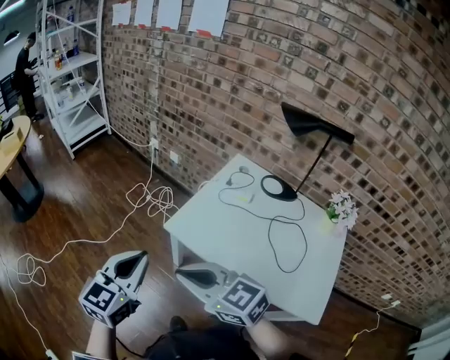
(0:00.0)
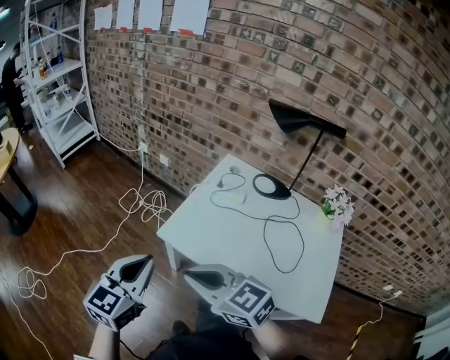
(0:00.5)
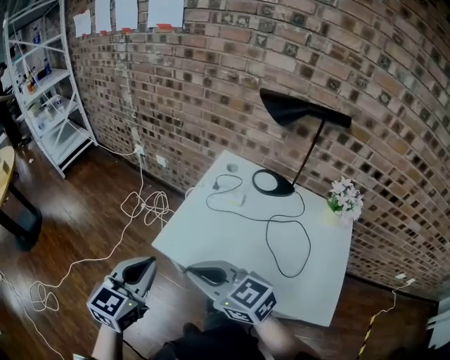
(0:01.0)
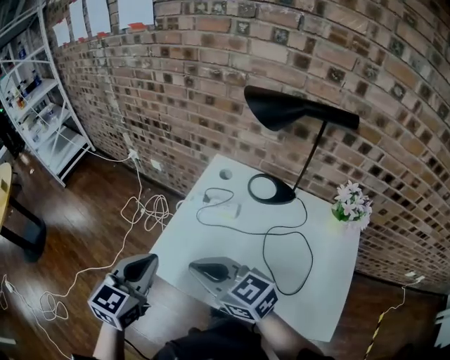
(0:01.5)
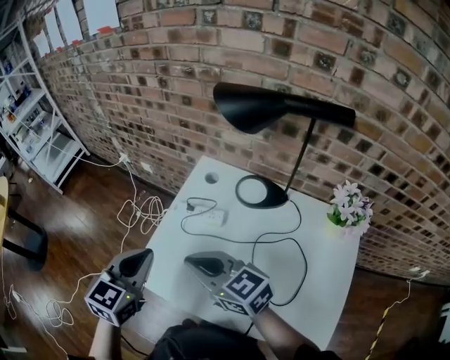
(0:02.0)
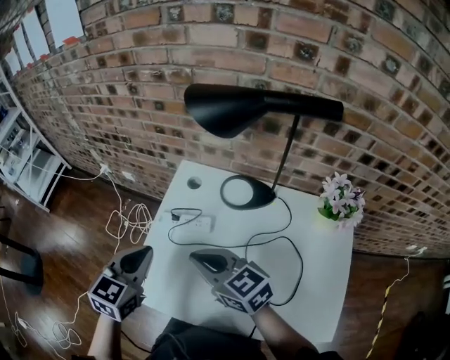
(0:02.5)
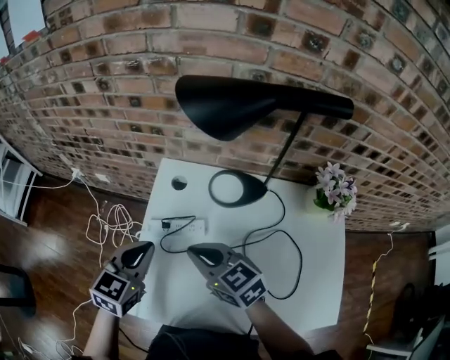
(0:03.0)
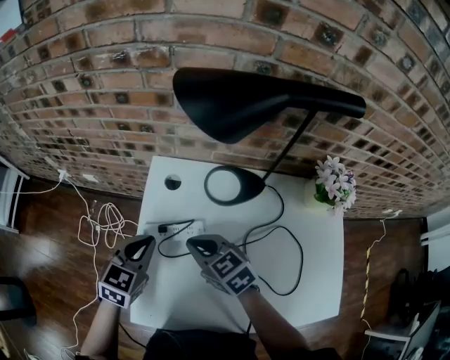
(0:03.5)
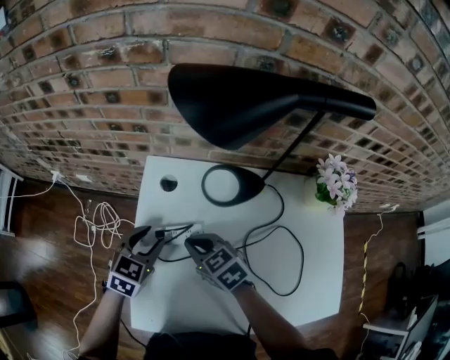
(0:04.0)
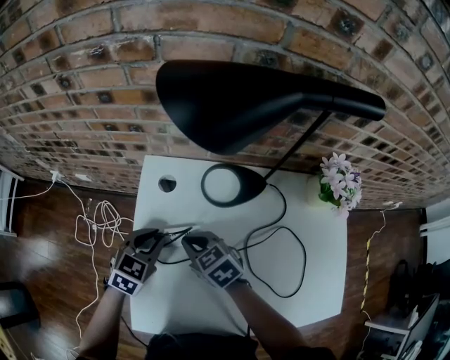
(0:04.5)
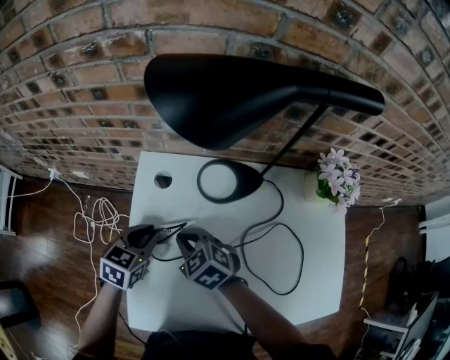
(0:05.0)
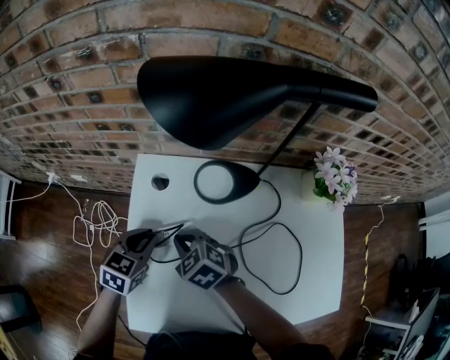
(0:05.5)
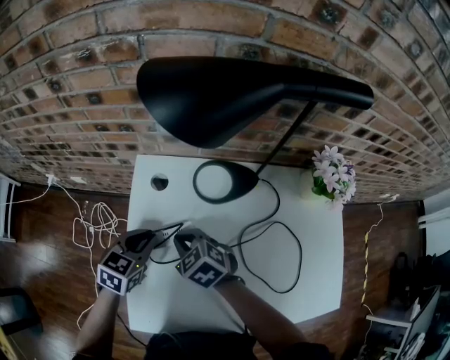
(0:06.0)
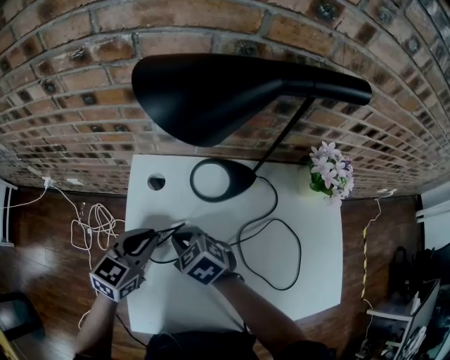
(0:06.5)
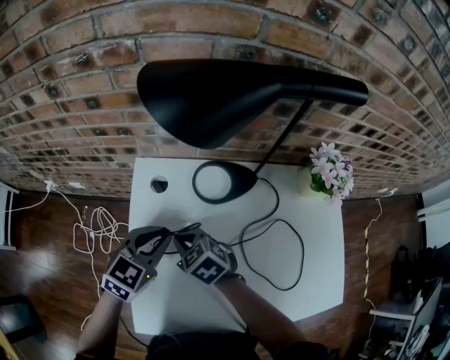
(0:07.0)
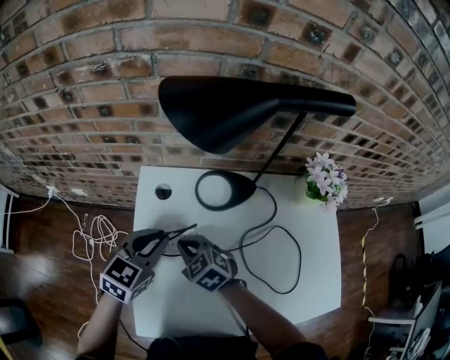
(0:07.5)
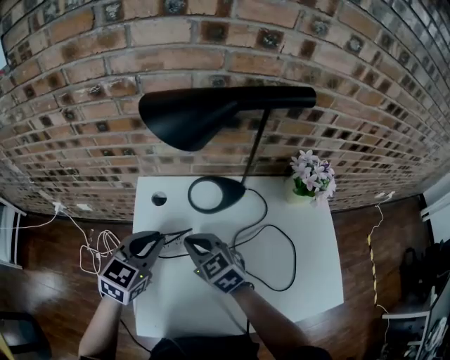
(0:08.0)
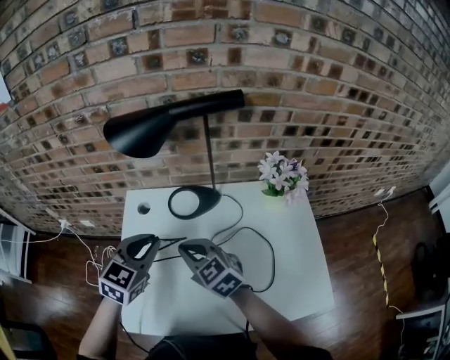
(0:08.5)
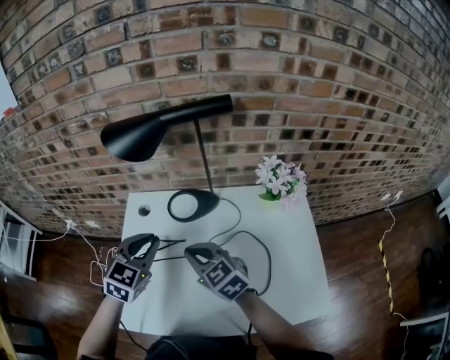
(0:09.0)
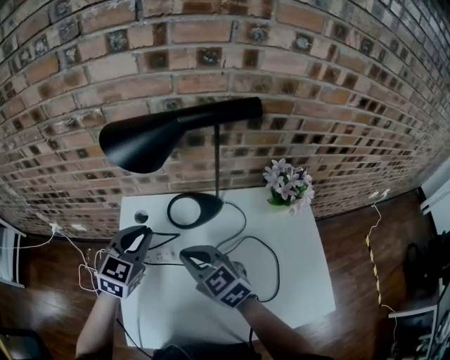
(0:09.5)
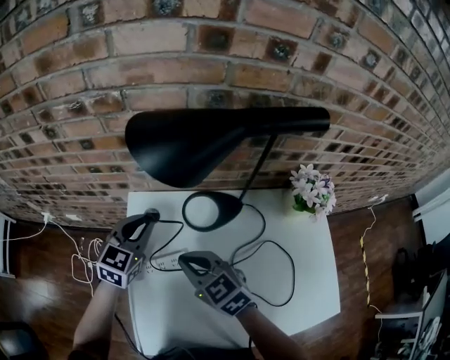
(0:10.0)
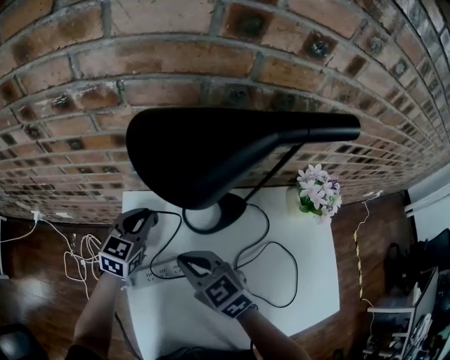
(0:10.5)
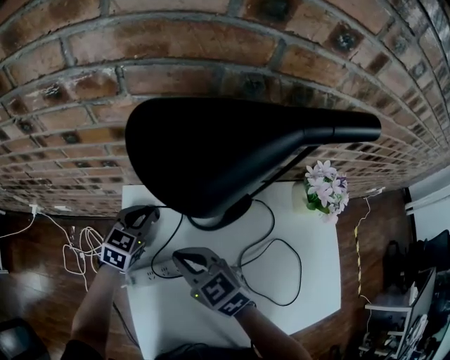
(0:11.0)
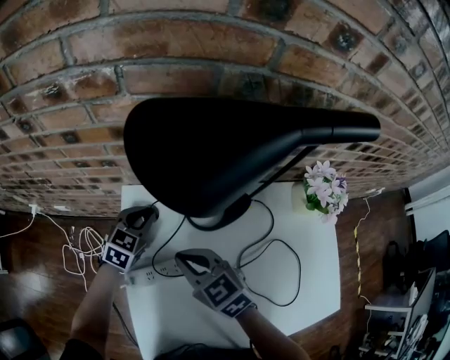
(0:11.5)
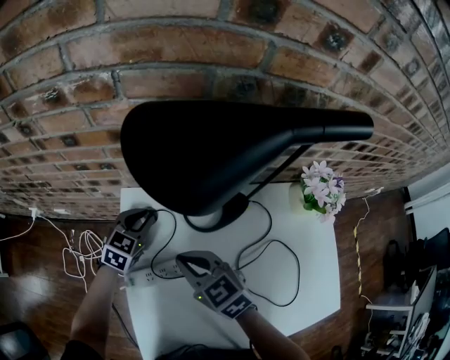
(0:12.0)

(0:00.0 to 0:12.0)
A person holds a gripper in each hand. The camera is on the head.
0:00.0 - 0:02.0: Both grippers travel together to the right and forward, about 30 cm.
0:02.0 - 0:04.0: The right gripper travels downward by some 15 cm, and swivels some 40 degrees. The left gripper ends up about 25 cm from where it was, swivels some 30 degrees, and opens.
0:04.0 - 0:06.0: The left gripper closes up.
0:06.0 - 0:08.0: The two grippers go roughly 10 cm upward.
0:08.0 - 0:10.0: The right gripper travels to the right and back again, roughly 10 cm each way, while the left gripper shifts approximately 10 cm forward.
0:10.0 - 0:12.0: The left gripper is displaced downward by approximately 10 cm.

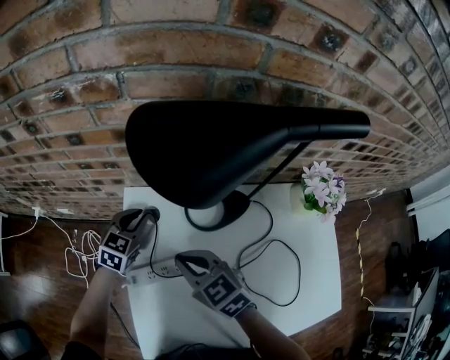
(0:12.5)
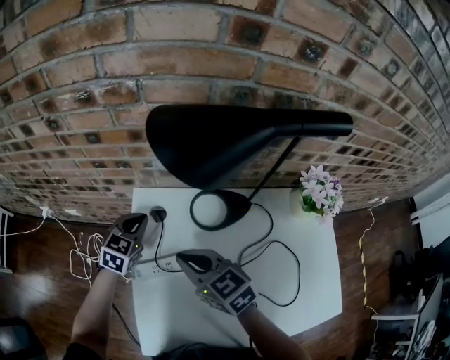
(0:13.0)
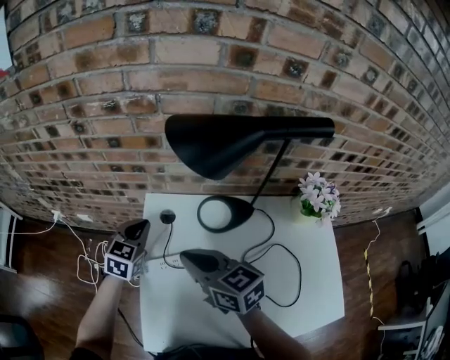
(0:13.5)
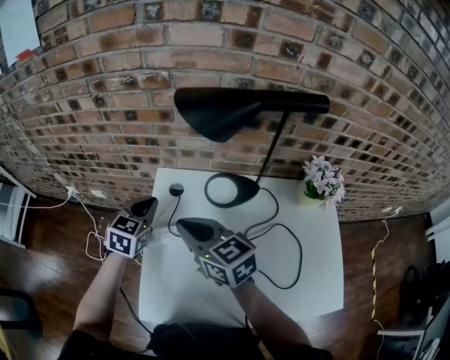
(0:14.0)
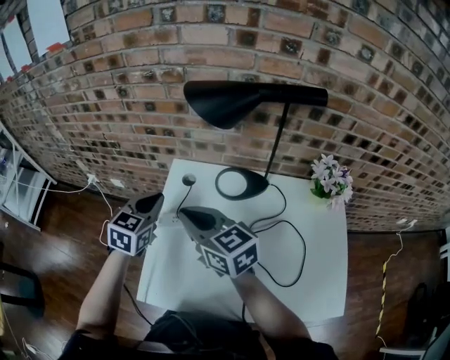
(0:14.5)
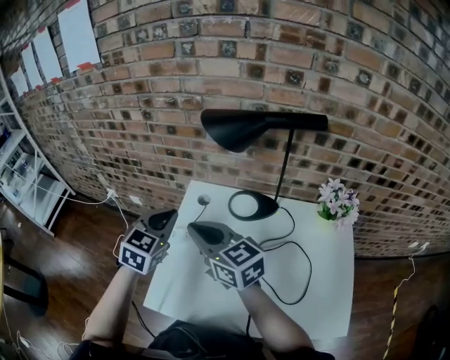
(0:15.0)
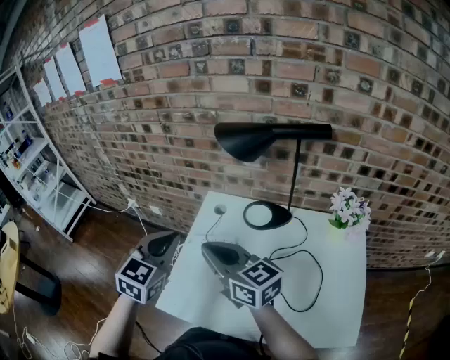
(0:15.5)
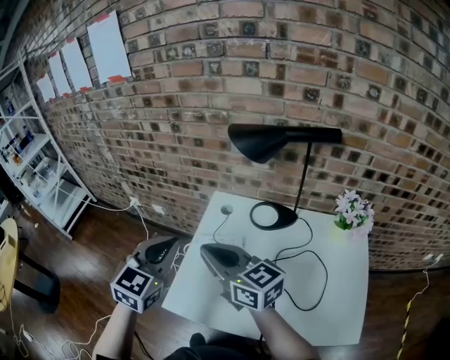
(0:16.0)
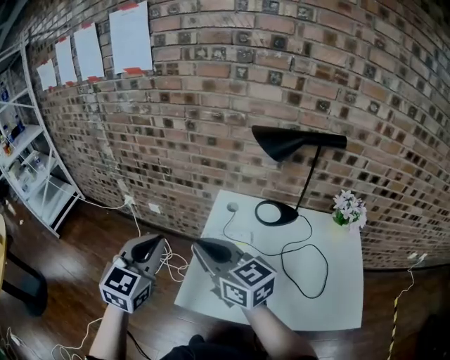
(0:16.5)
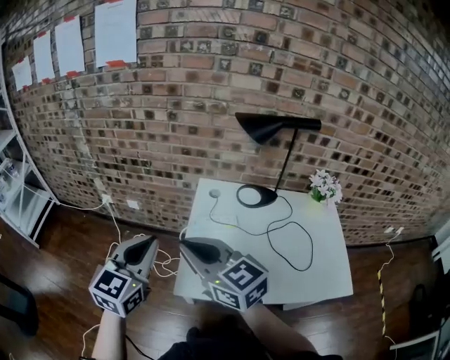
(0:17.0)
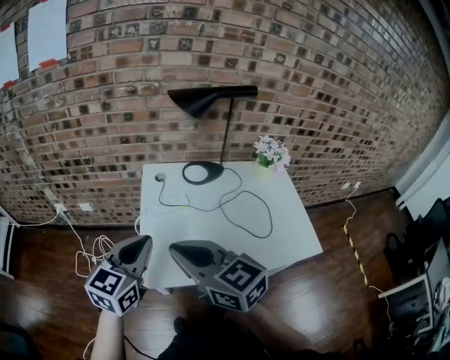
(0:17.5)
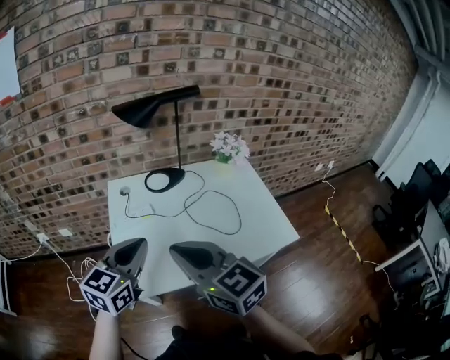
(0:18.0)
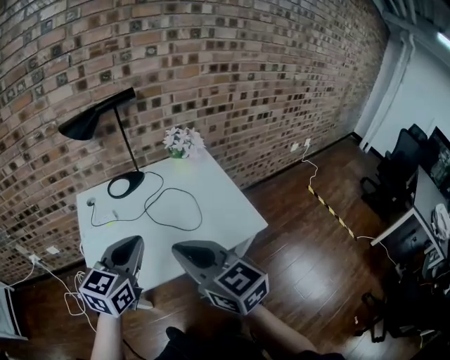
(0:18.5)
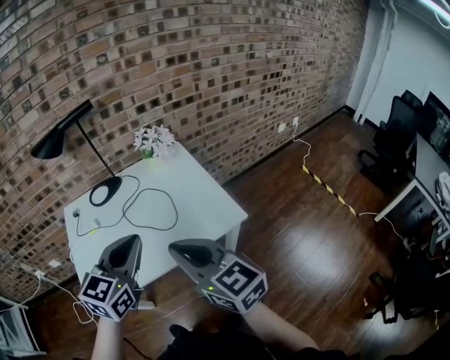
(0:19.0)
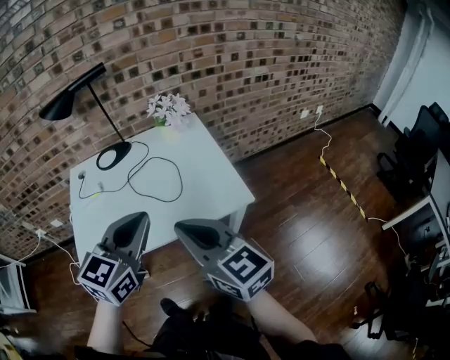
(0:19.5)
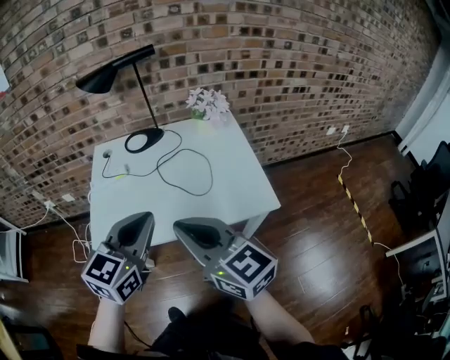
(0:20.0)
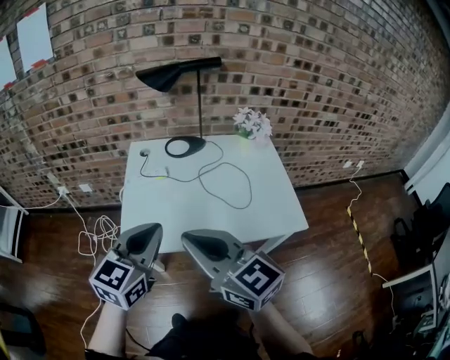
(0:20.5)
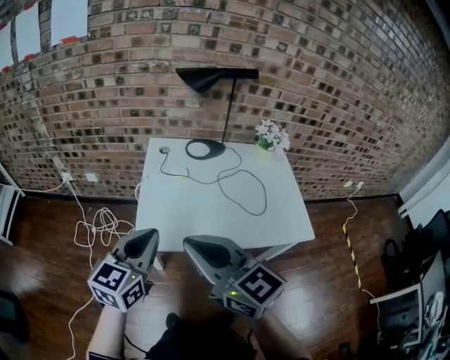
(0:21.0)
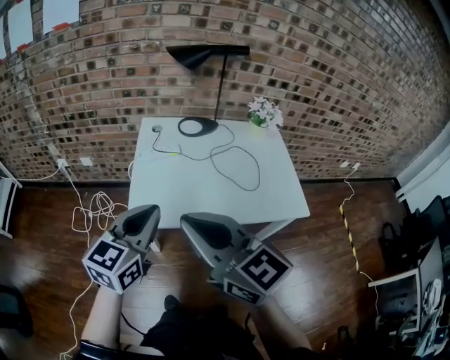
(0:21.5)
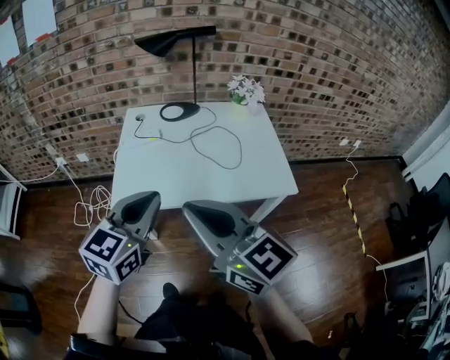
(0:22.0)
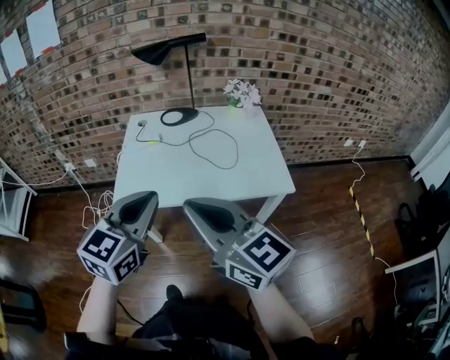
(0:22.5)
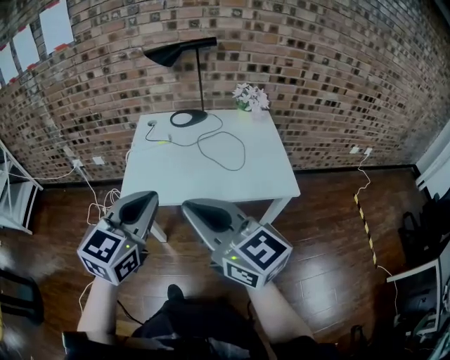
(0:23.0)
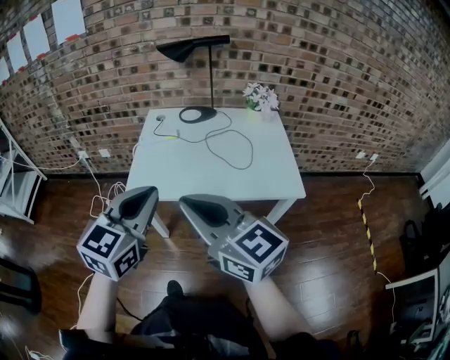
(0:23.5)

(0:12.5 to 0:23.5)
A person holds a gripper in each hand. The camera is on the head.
0:12.5 - 0:14.5: Both grippers move upward and backward, about 20 cm. The right gripper turns by roughly 20 degrees.
0:14.5 - 0:16.0: The left gripper travels backward and upward by some 20 cm. The right gripper goes some 10 cm backward and upward.
0:16.0 - 0:18.0: The right gripper changes place by approximately 20 cm, and changes its angle by some 40 degrees; the left gripper ends up some 15 cm from where it was, and changes its angle by approximately 40 degrees.
0:18.0 - 0:20.0: Both grippers move to the right, about 20 cm.
0:20.0 - 0:21.5: The grippers both shift to the left by approximately 20 cm.
0:21.5 - 0:23.5: The left gripper shifts about 15 cm backward and to the right, while the right gripper is displaced to the right and backward by roughly 15 cm.

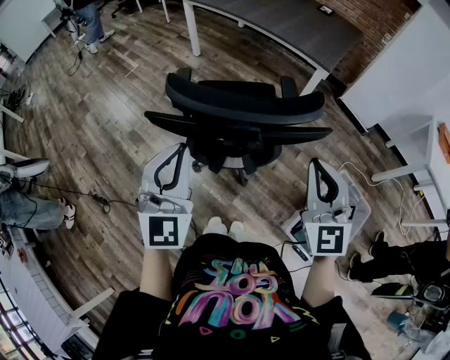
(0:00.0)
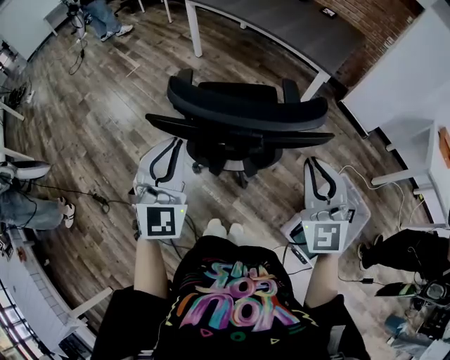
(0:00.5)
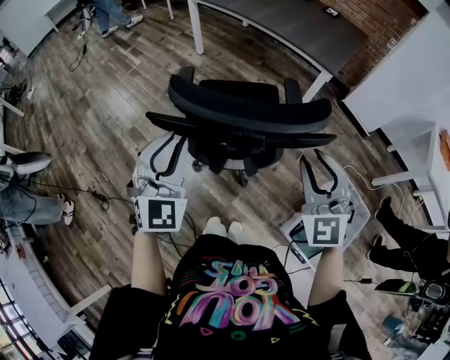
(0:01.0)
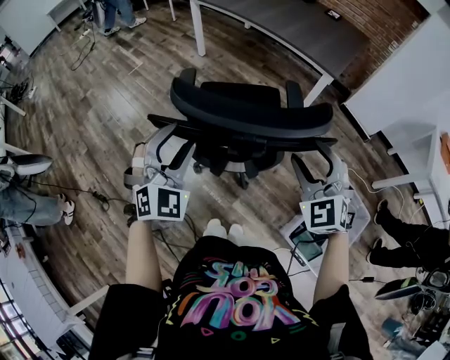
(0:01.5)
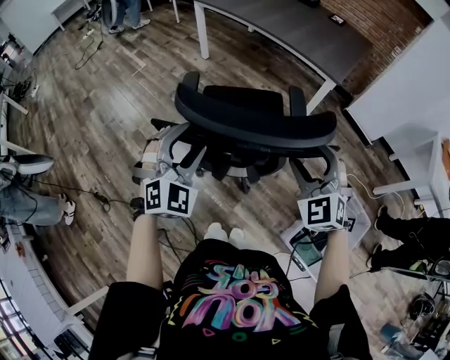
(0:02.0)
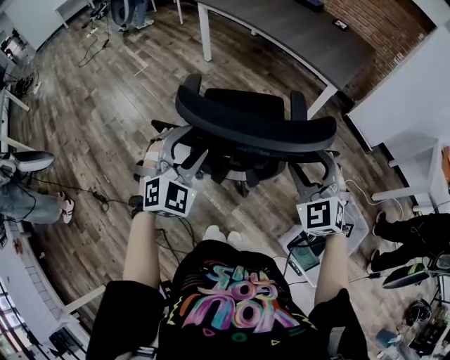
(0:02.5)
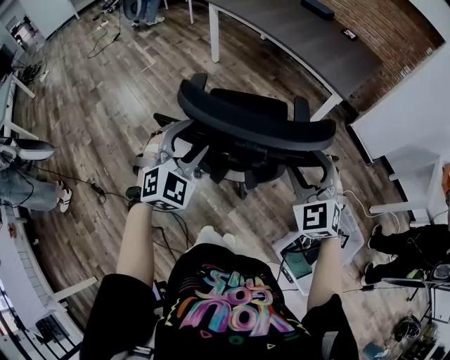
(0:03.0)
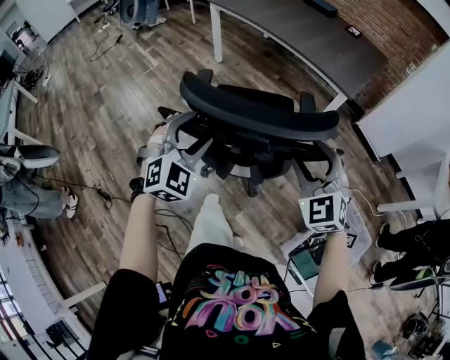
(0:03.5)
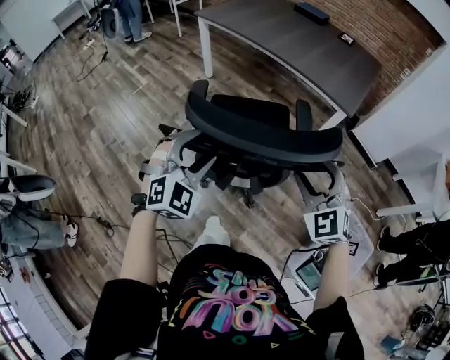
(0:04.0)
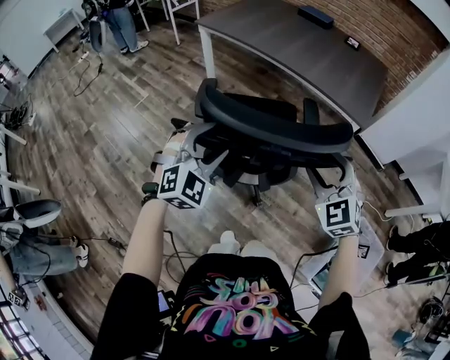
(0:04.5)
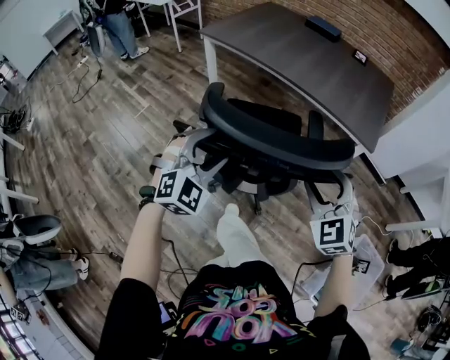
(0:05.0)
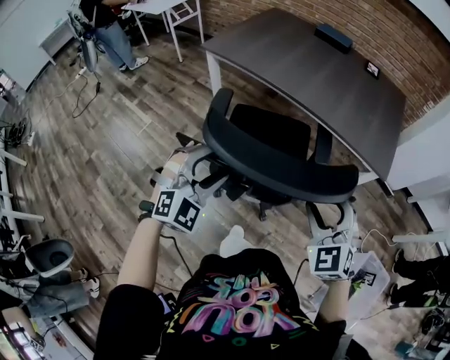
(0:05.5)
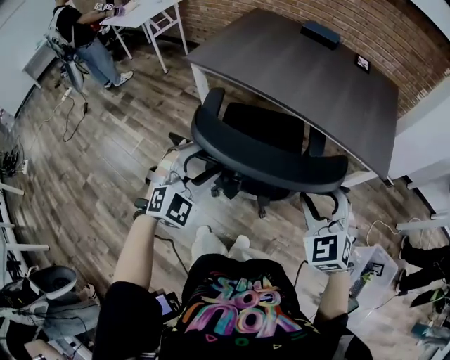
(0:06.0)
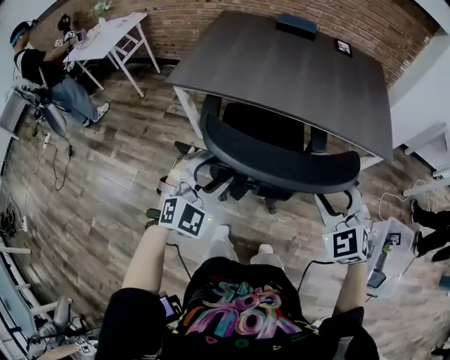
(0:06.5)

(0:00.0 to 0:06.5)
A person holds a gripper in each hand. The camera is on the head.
0:00.0 - 0:02.0: The right gripper is displaced forward and downward by roughly 10 cm, rotates roughly 30 degrees, and opens; the left gripper heads downward and forward, covering approximately 10 cm, changes its angle by approximately 30 degrees, and opens its fingers.
0:02.0 - 0:04.5: Both grippers travel together forward, roughly 25 cm.
0:04.5 - 0:06.5: The grippers both shift forward and to the left by about 35 cm. The left gripper changes its angle by approximately 20 degrees. Meanwhile the right gripper rotates approximately 20 degrees.
